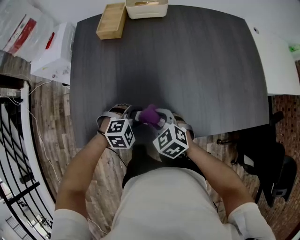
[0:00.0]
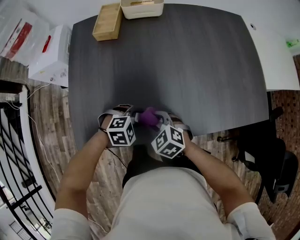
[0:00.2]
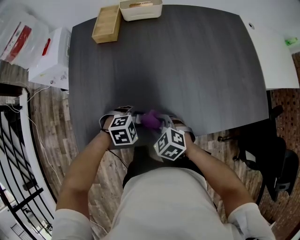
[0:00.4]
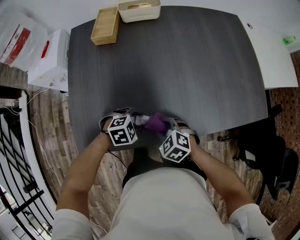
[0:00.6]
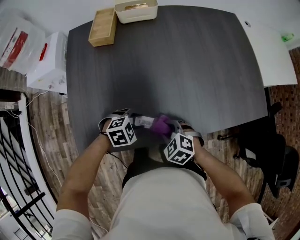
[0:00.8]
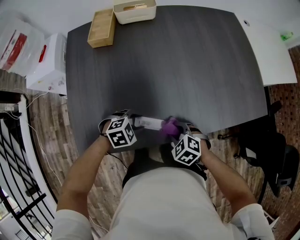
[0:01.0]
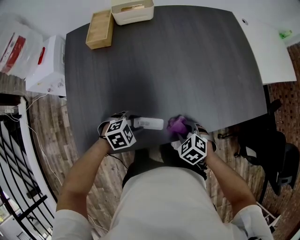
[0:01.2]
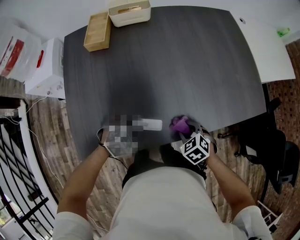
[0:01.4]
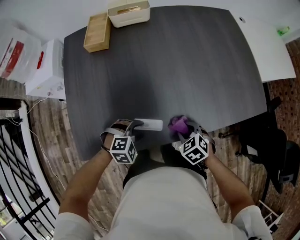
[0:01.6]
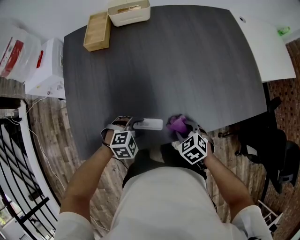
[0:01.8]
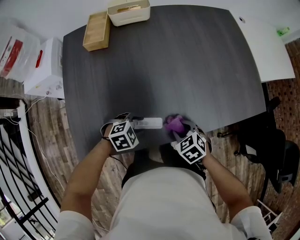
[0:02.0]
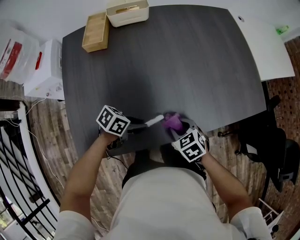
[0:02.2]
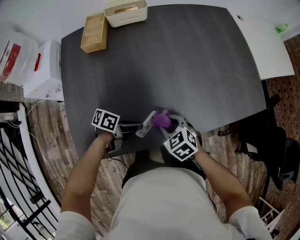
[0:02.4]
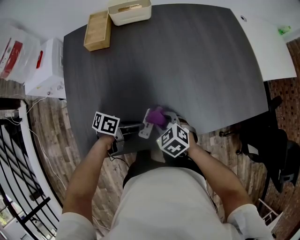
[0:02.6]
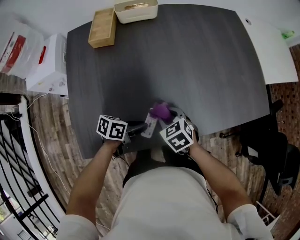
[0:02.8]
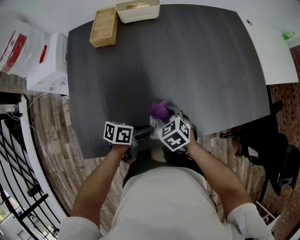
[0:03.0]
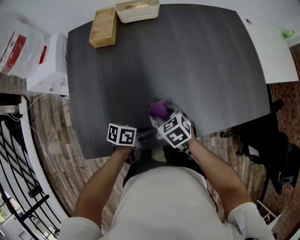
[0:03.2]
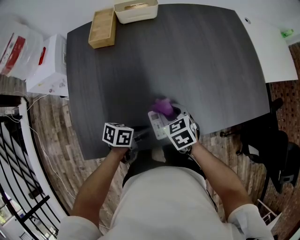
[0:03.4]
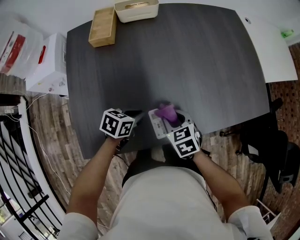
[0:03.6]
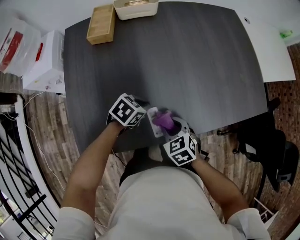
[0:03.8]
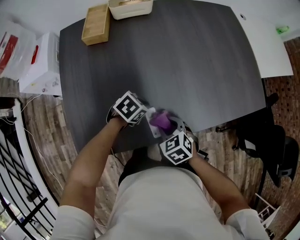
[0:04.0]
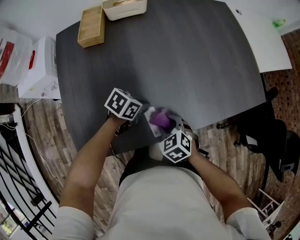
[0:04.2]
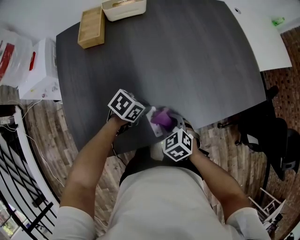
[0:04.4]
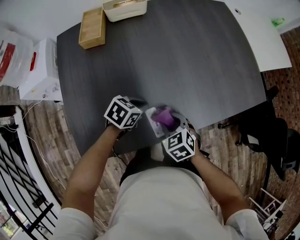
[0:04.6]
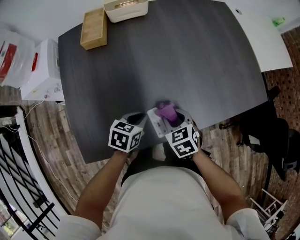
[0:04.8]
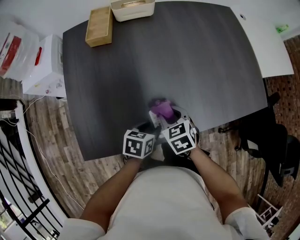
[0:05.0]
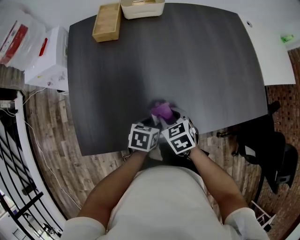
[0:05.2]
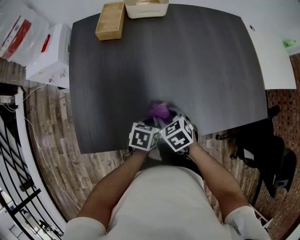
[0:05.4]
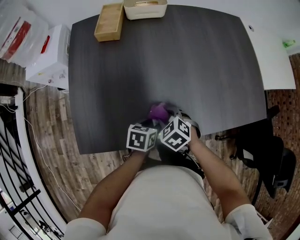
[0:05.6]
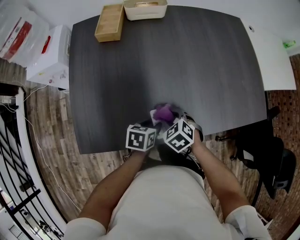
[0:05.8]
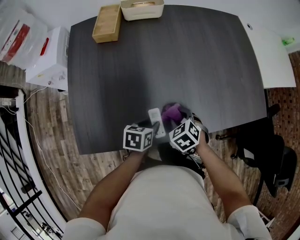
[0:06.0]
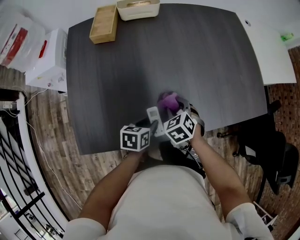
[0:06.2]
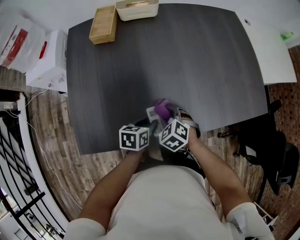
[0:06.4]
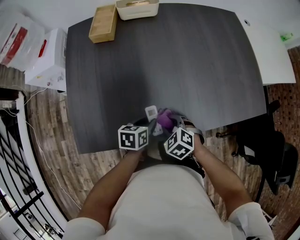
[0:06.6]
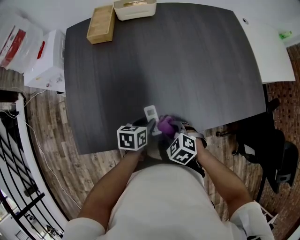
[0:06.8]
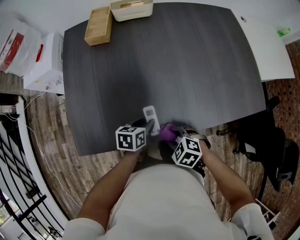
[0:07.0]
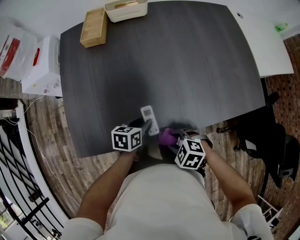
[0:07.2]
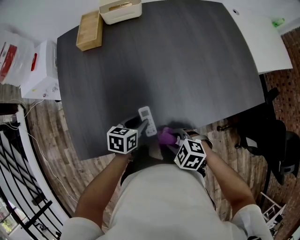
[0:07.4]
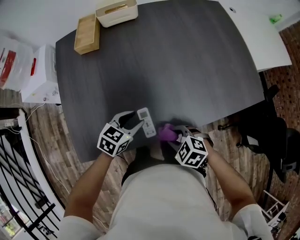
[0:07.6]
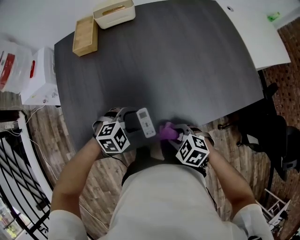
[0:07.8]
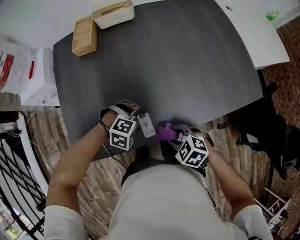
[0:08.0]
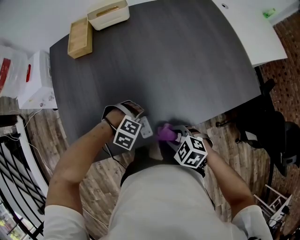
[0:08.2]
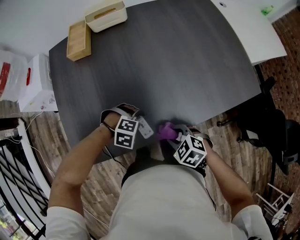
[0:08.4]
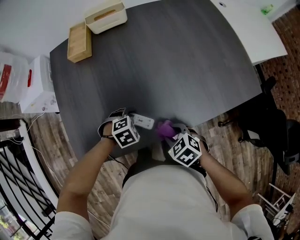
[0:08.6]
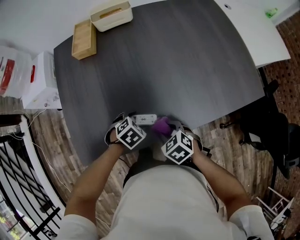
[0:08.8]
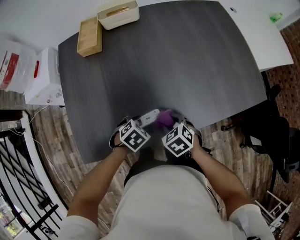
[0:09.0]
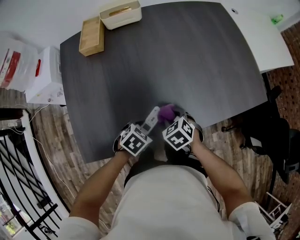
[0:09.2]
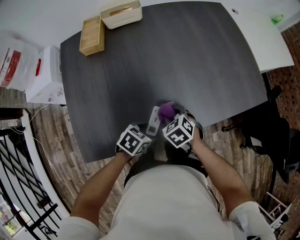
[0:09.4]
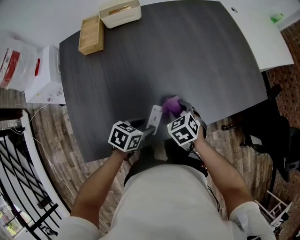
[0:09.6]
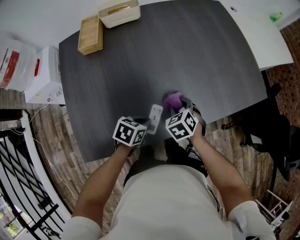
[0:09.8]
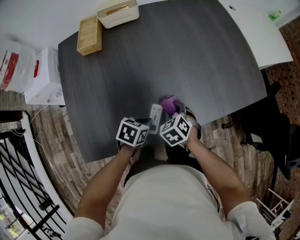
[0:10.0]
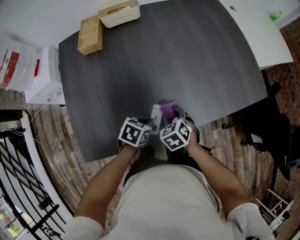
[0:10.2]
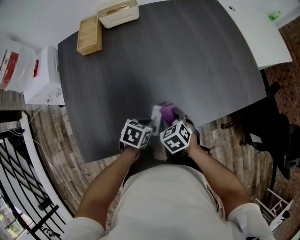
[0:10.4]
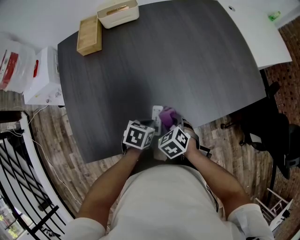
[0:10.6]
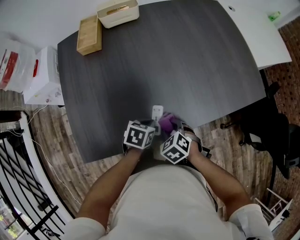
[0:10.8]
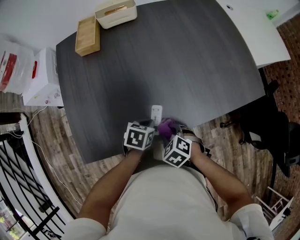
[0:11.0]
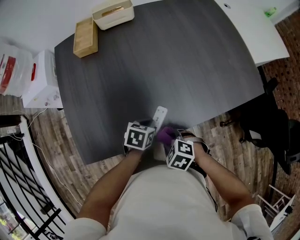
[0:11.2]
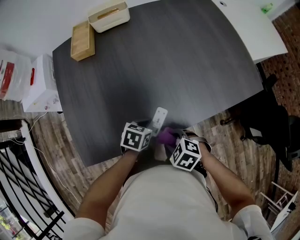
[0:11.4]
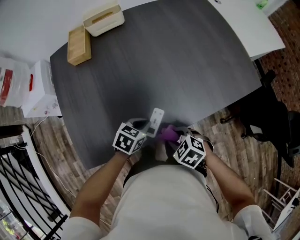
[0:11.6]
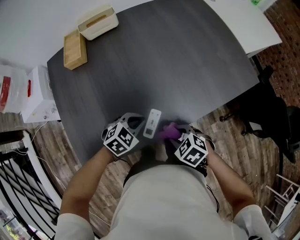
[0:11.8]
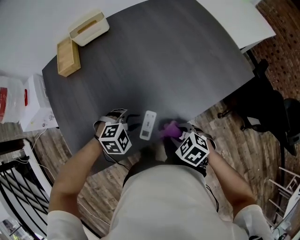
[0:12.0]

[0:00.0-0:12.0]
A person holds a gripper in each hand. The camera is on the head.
0.0 to 1.6 s: The right gripper moves some 15 cm, and turns by roughly 20 degrees.
1.6 to 3.0 s: The right gripper moves some 15 cm; the left gripper rolls counterclockwise, seen from behind, by roughly 90 degrees.
3.0 to 4.4 s: The right gripper shifts by some 5 cm, while the left gripper is displaced forward by about 5 cm, and turns by some 40 degrees.
4.4 to 6.0 s: The left gripper changes place by about 5 cm, swivels about 40 degrees, and opens up, while the right gripper shifts by approximately 5 cm.
6.0 to 7.6 s: The left gripper shifts approximately 5 cm upward, and turns by roughly 40 degrees; the right gripper moves approximately 10 cm, and swivels about 20 degrees.
7.6 to 9.0 s: The right gripper changes place by roughly 10 cm, and swivels about 30 degrees. Meanwhile the left gripper heads downward, covering approximately 5 cm, turns by approximately 30 degrees, and opens.
9.0 to 10.4 s: The left gripper swivels about 30 degrees, and closes up. The right gripper moves approximately 10 cm forward and comes back.
10.4 to 12.0 s: The left gripper shifts roughly 5 cm upward, and twists about 70 degrees clockwise, seen from behind; the right gripper shifts by approximately 10 cm.

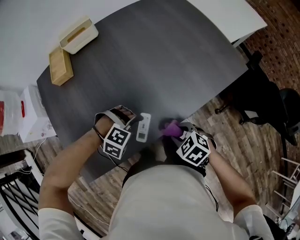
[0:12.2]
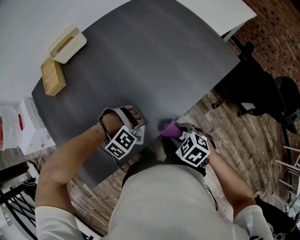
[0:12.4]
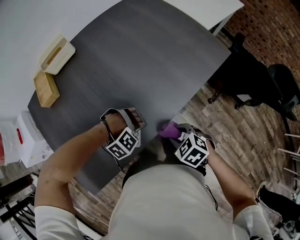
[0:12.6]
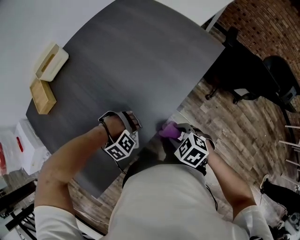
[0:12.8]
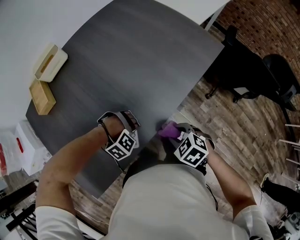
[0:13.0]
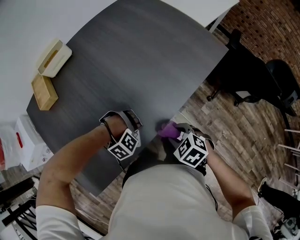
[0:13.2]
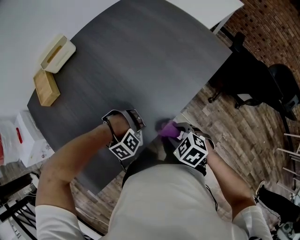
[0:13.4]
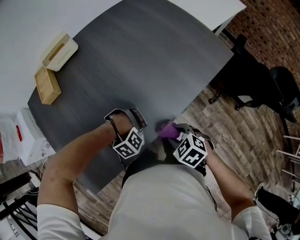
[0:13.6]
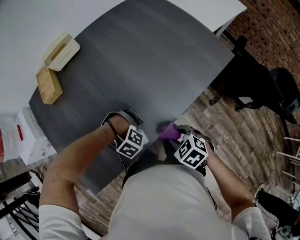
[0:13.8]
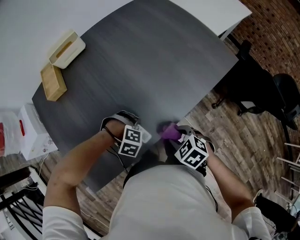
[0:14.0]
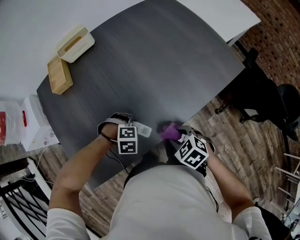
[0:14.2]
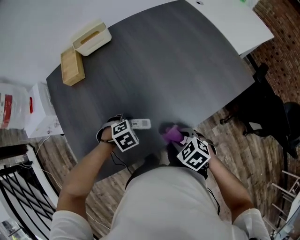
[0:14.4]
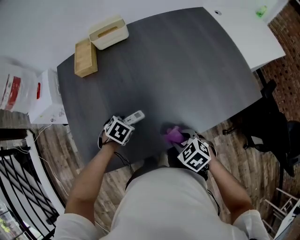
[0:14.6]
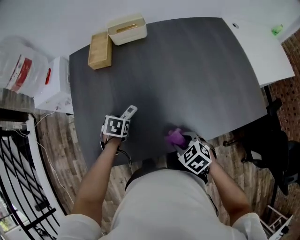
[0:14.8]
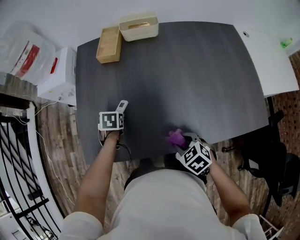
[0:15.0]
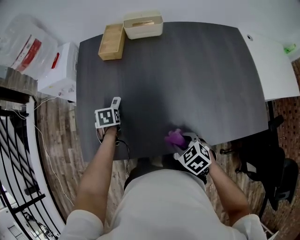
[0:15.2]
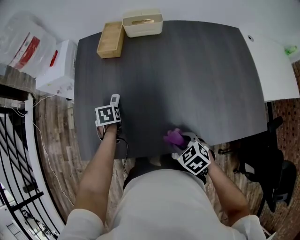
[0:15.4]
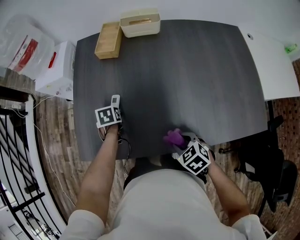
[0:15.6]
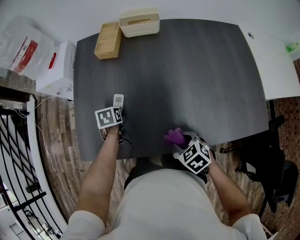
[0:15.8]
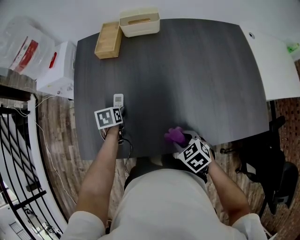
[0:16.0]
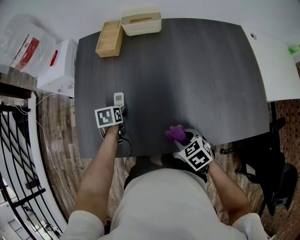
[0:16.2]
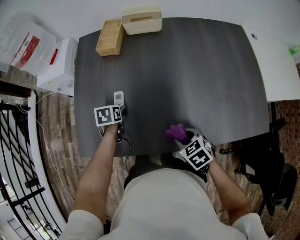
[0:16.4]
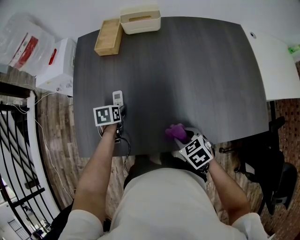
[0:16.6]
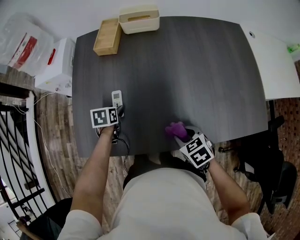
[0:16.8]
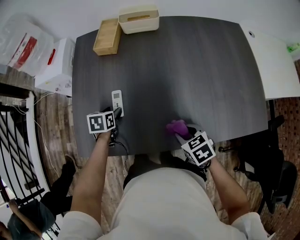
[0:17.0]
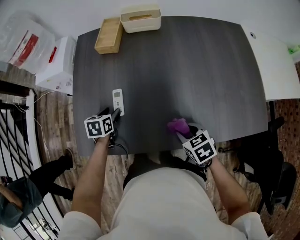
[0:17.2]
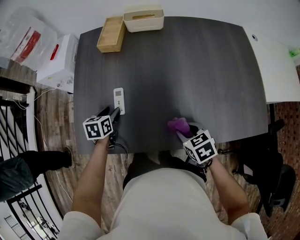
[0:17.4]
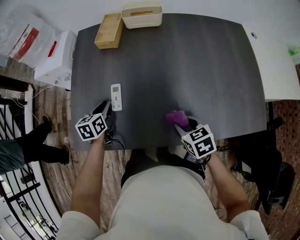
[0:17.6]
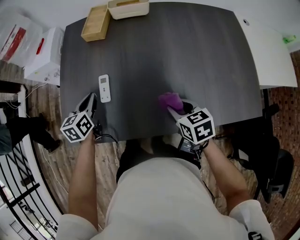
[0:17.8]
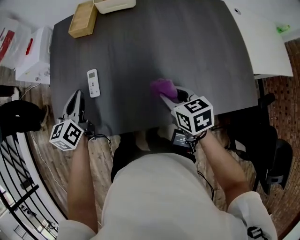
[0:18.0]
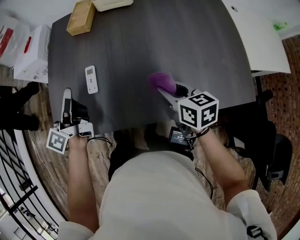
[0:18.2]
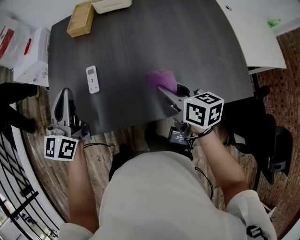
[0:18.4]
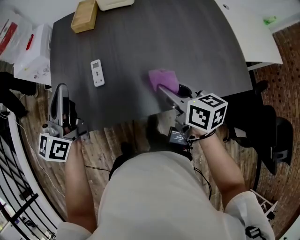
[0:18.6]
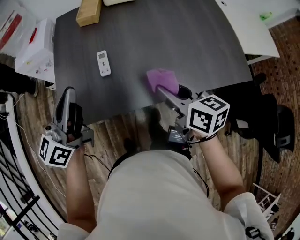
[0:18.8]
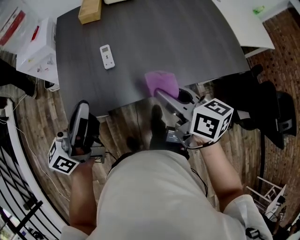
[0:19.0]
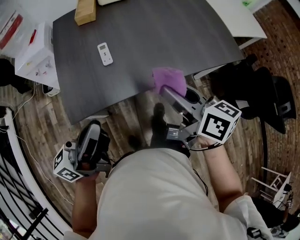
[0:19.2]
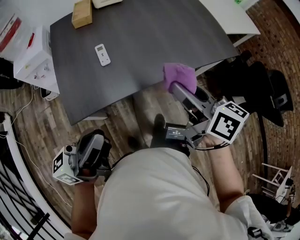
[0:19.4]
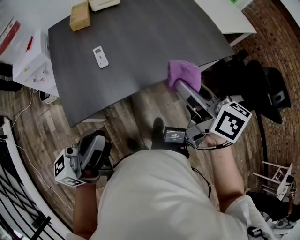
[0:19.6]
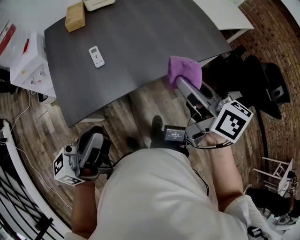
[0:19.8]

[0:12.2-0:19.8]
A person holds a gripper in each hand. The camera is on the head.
12.2 to 13.8 s: The left gripper goes some 5 cm downward, and changes its angle by about 30 degrees.
13.8 to 15.2 s: The right gripper moves roughly 10 cm, and turns by some 30 degrees. The left gripper moves some 30 cm, and rotates roughly 170 degrees.
15.2 to 16.8 s: The grippers move only a little.
16.8 to 18.2 s: The left gripper heads upward, covering some 20 cm, tilts its fingers some 70 degrees upward, and closes its fingers. The right gripper heads upward and forward, covering approximately 10 cm, and swivels about 30 degrees.
18.2 to 19.8 s: The right gripper moves about 30 cm, and rotates roughly 40 degrees; the left gripper moves some 30 cm, and rotates roughly 60 degrees.

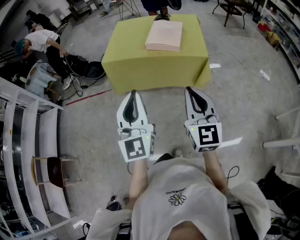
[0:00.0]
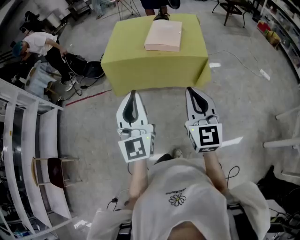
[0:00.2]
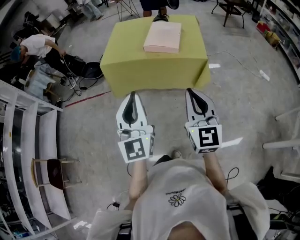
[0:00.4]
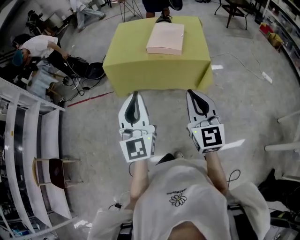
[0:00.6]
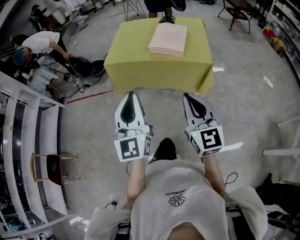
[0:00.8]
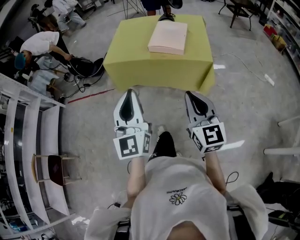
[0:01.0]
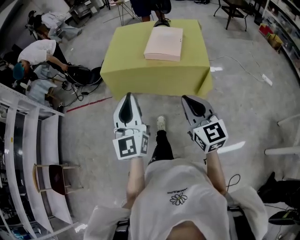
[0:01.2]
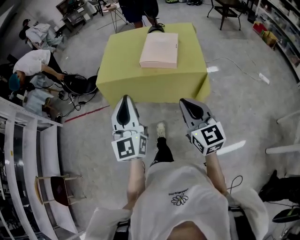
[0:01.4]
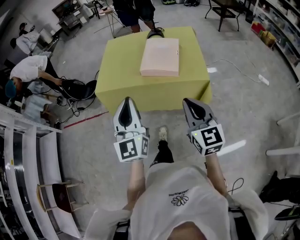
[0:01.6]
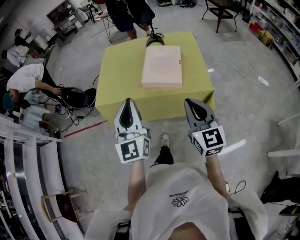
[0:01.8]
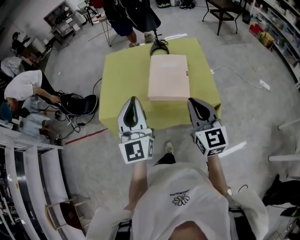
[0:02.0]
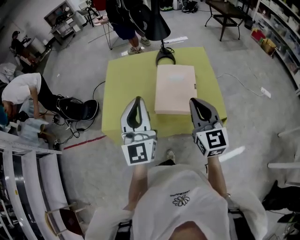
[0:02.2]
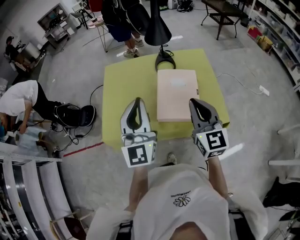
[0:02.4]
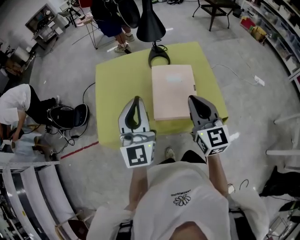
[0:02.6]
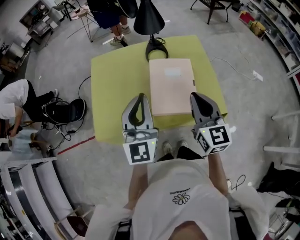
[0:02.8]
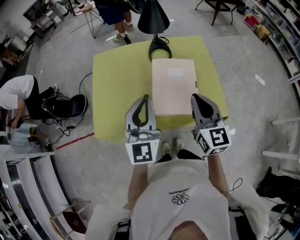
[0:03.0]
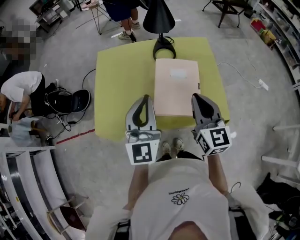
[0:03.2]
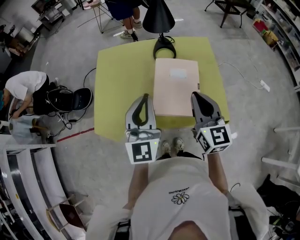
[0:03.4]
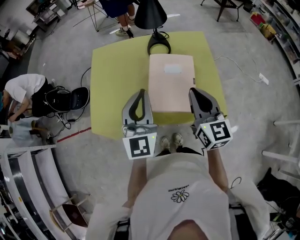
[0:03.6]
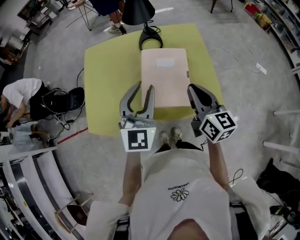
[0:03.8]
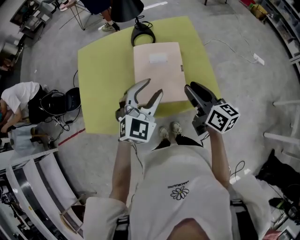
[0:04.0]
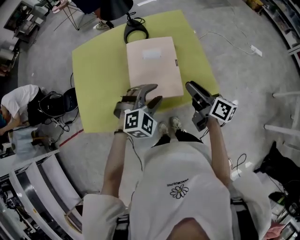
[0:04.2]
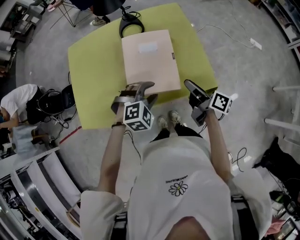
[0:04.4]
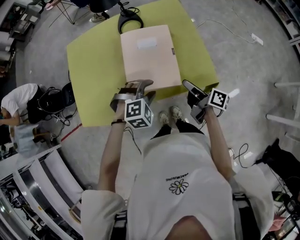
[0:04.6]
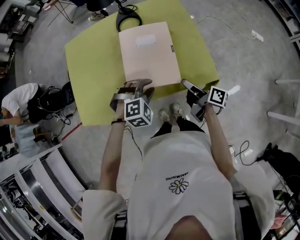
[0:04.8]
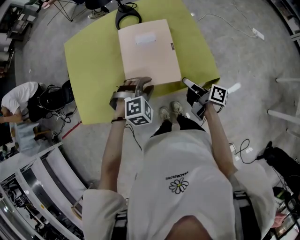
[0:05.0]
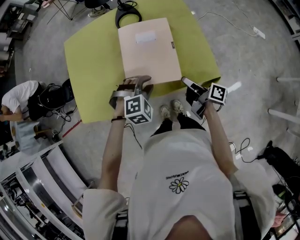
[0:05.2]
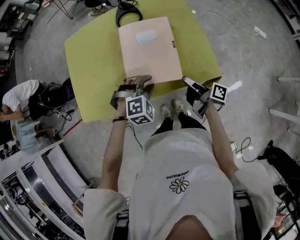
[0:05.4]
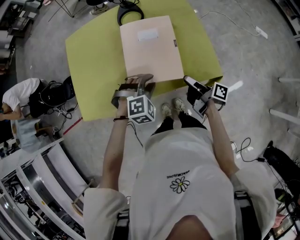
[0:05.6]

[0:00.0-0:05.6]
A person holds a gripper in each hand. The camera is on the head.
0.0 to 1.4 s: Both grippers travel together forward, some 15 cm.
1.4 to 2.8 s: The pair of grippers is taken forward, approximately 40 cm. The right gripper changes its angle by some 20 degrees.
2.8 to 4.2 s: The two grippers go roughly 20 cm downward and to the right. The right gripper twists some 60 degrees clockwise, seen from behind, and opens its fingers. Meanwhile the left gripper points its fingers about 50 degrees further downward, and opens.
4.2 to 5.6 s: The right gripper shifts some 15 cm downward, and turns by some 30 degrees, while the left gripper is displaced downward by roughly 10 cm.
